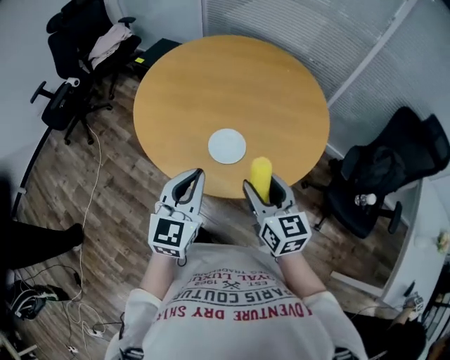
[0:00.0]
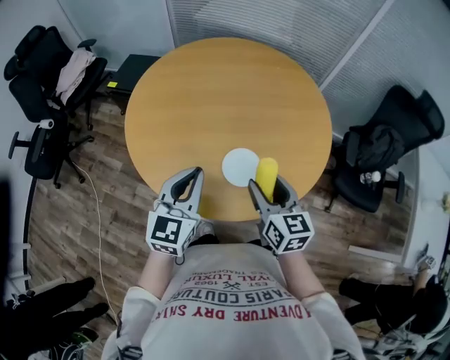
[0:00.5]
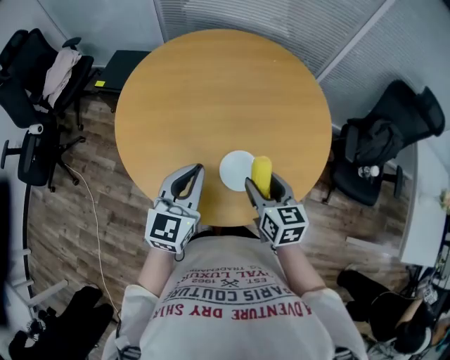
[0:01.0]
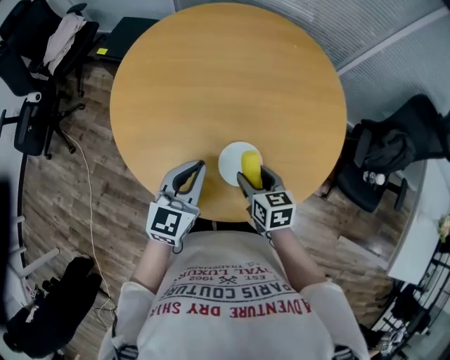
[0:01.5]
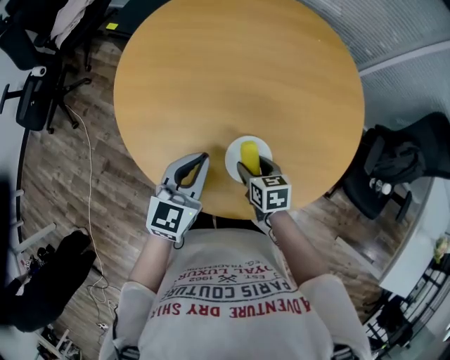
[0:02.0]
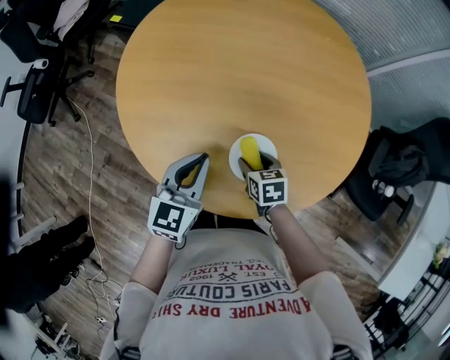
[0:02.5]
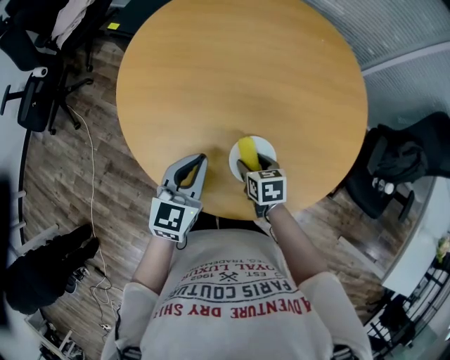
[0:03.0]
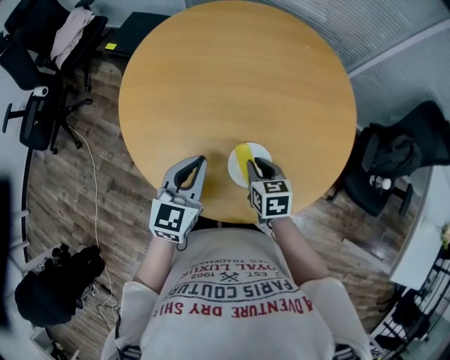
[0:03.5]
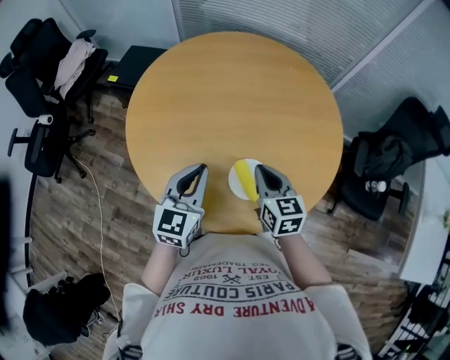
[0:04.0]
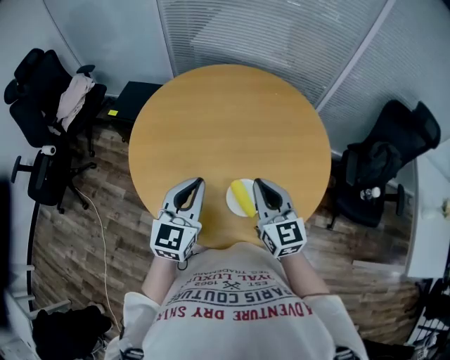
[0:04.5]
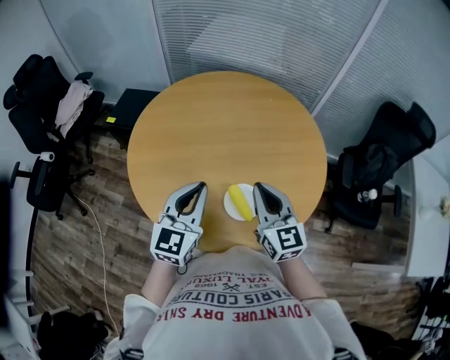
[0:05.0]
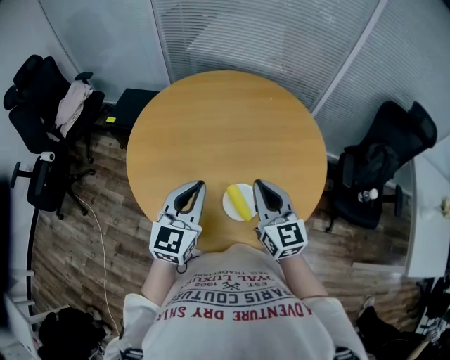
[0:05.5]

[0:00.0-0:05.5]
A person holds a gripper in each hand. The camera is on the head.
0:00.0 to 0:02.0: The left gripper goes roughly 25 cm forward and downward, while the right gripper is displaced downward and forward by about 30 cm, and tilts its fingers about 40 degrees downward.
0:02.0 to 0:03.5: The right gripper shifts some 5 cm upward, and closes up.
0:03.5 to 0:05.5: The left gripper travels upward by some 10 cm; the right gripper shifts about 20 cm upward, and angles its fingers upward, by roughly 40 degrees.

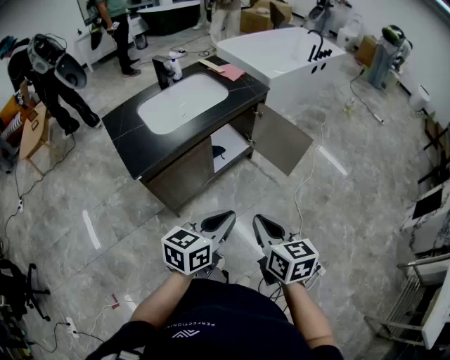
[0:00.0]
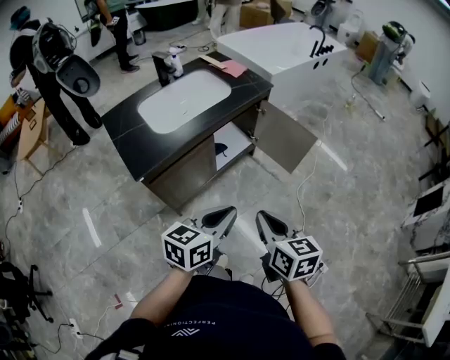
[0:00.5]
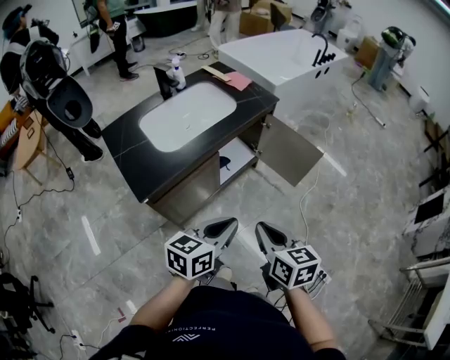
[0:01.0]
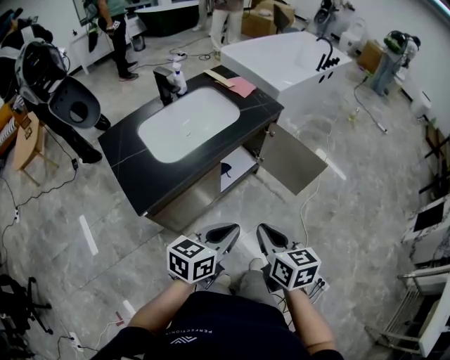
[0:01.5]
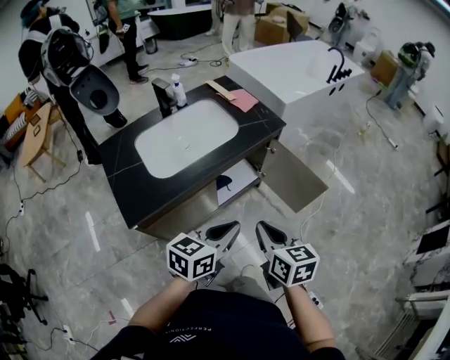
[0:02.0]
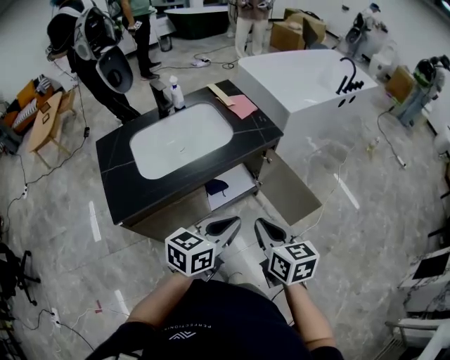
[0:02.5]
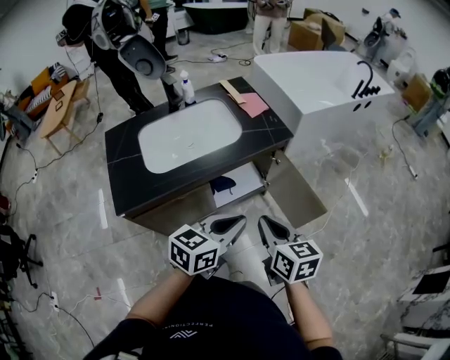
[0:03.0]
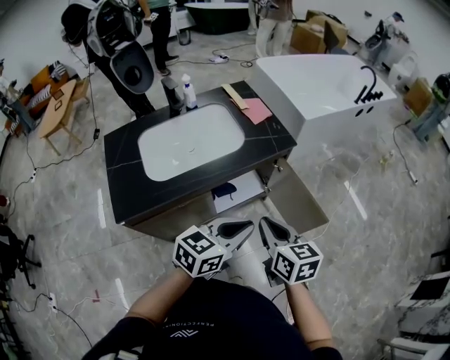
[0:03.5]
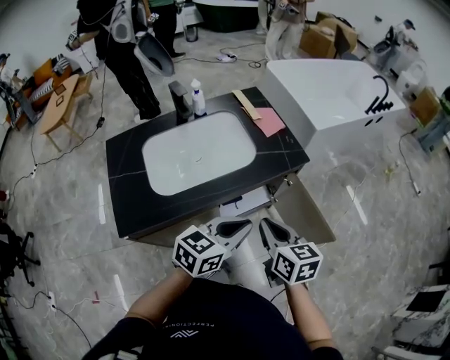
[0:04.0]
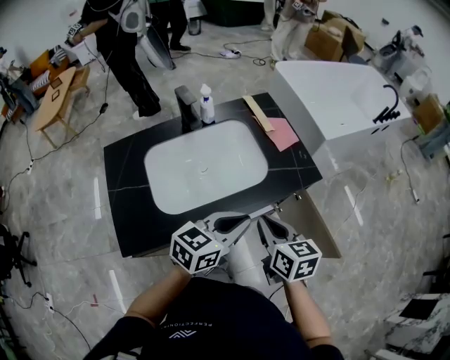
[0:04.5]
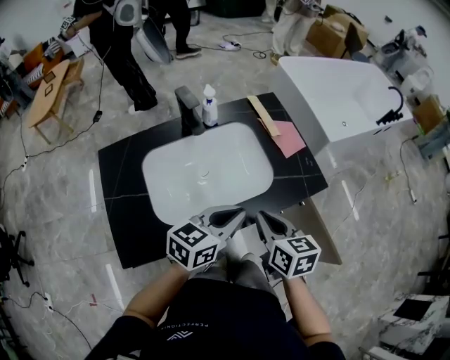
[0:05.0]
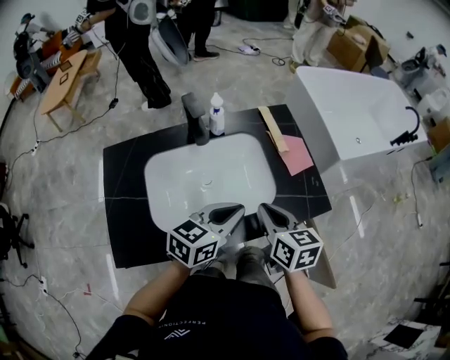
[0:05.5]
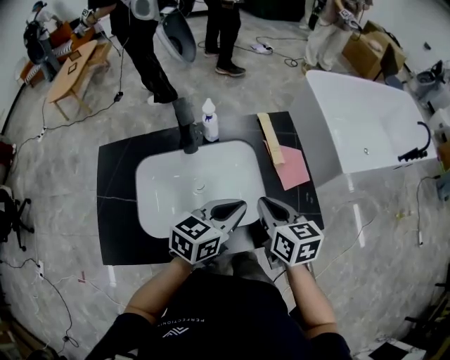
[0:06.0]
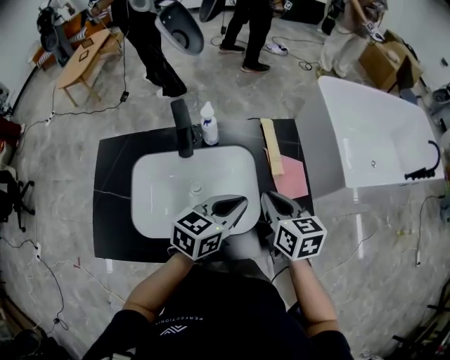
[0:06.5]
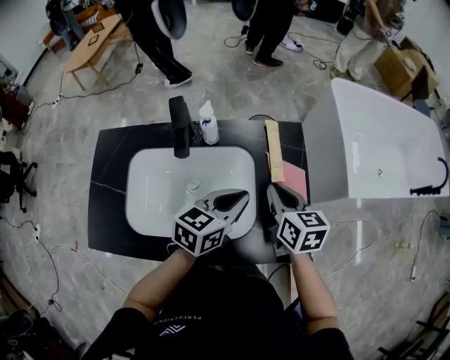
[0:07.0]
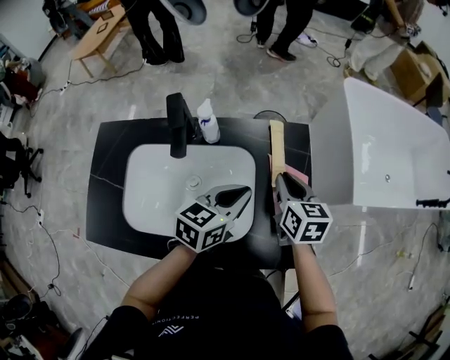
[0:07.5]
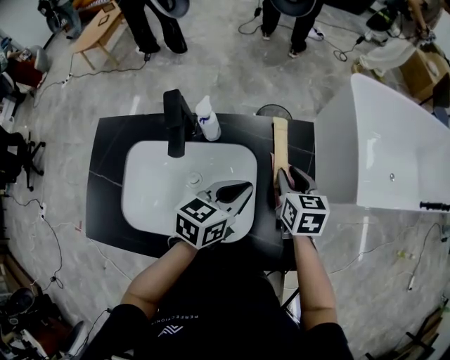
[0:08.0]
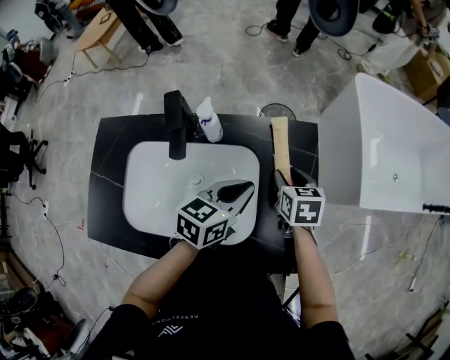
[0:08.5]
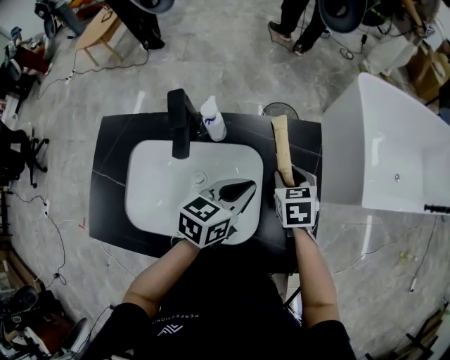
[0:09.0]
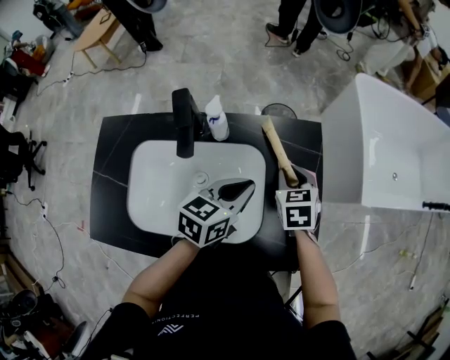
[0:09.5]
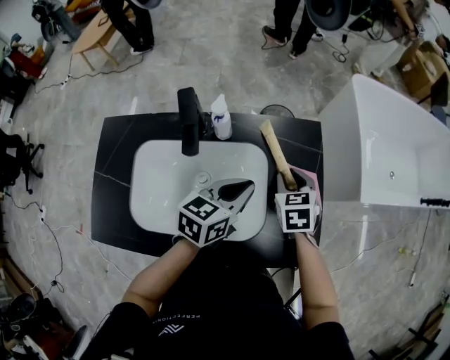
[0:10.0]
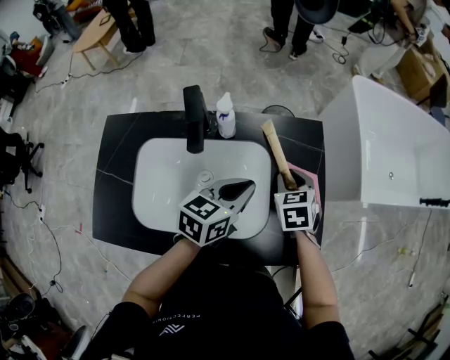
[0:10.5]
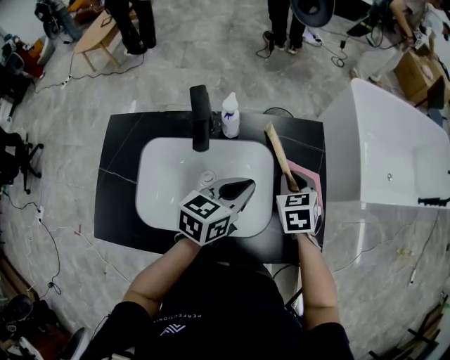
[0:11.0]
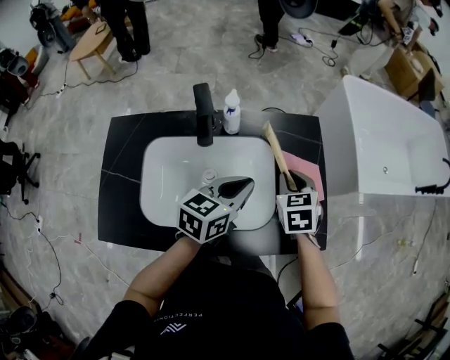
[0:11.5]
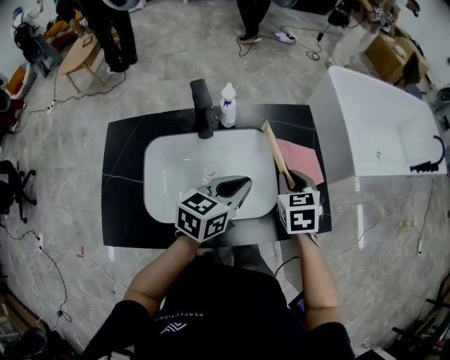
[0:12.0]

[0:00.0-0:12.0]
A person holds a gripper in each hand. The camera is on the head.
0:00.0 to 0:02.0: The two grippers go approximately 20 cm forward.
0:02.0 to 0:04.0: Both grippers travel together forward, some 15 cm.
0:04.0 to 0:06.0: Both grippers move forward, roughly 30 cm.
0:06.0 to 0:08.0: The grippers both shift forward by roughly 15 cm.
0:08.0 to 0:10.0: The right gripper changes its angle by about 20 degrees.
0:10.0 to 0:12.0: The two grippers go roughly 10 cm backward.

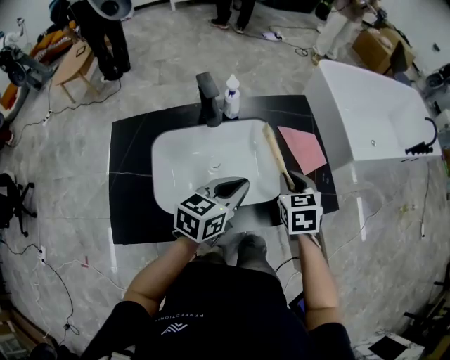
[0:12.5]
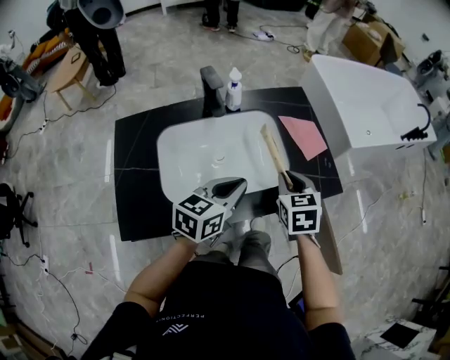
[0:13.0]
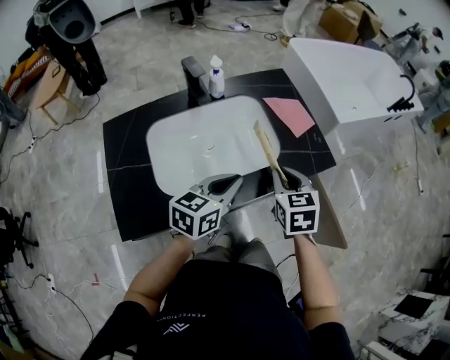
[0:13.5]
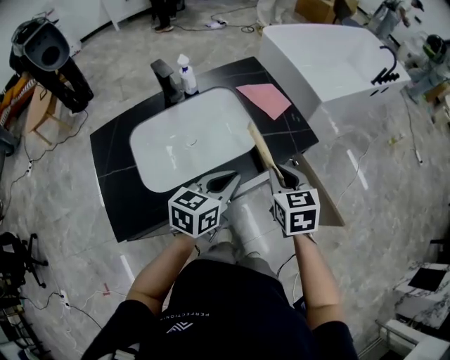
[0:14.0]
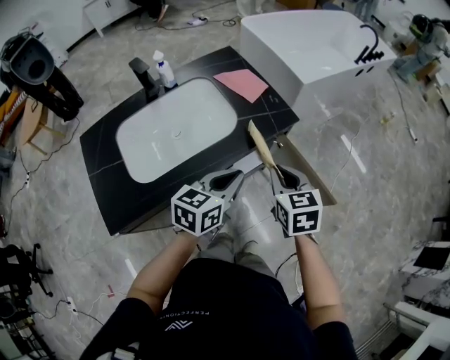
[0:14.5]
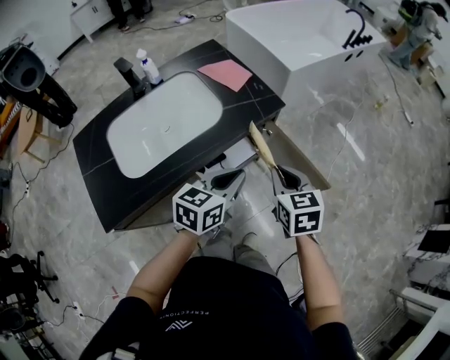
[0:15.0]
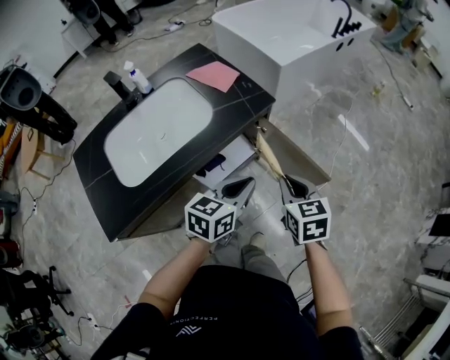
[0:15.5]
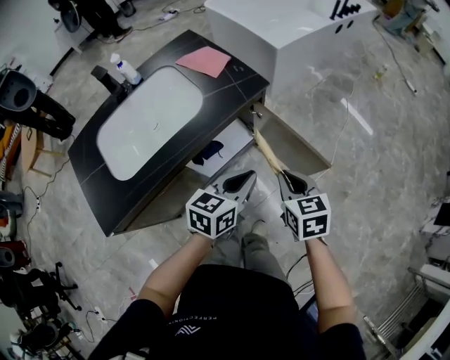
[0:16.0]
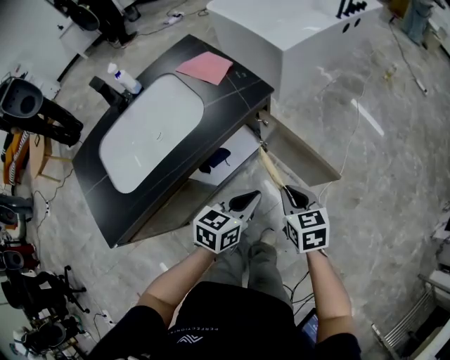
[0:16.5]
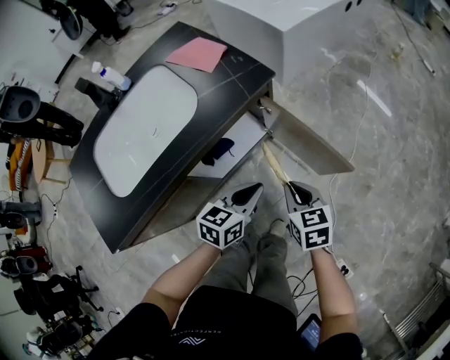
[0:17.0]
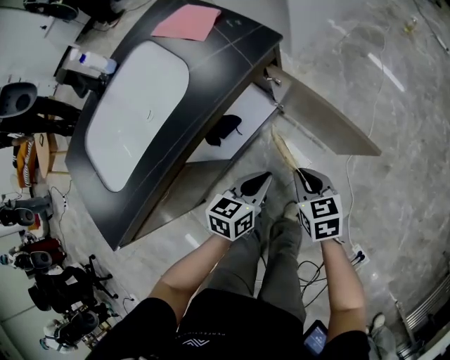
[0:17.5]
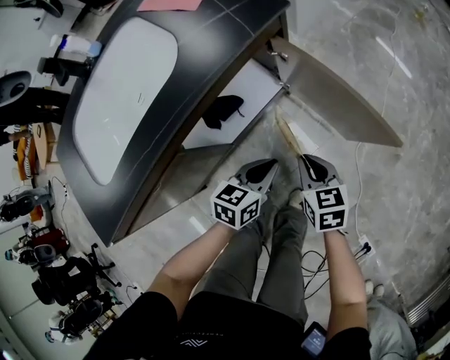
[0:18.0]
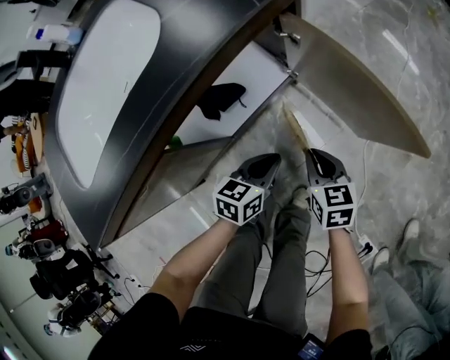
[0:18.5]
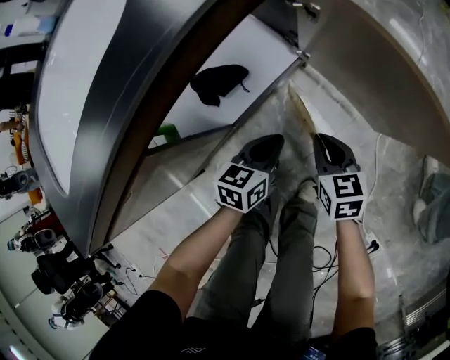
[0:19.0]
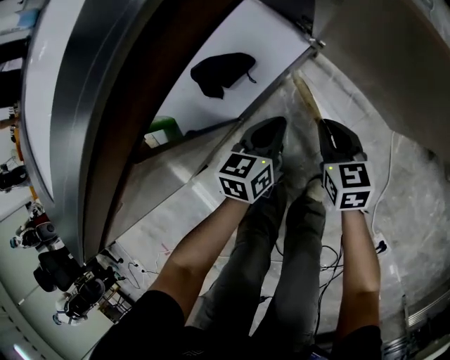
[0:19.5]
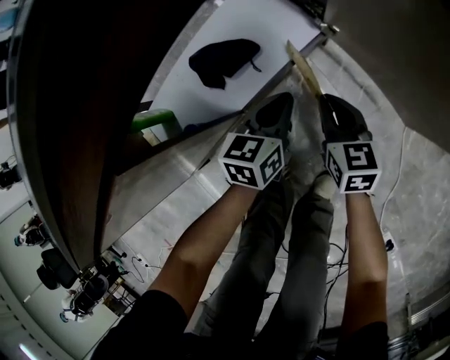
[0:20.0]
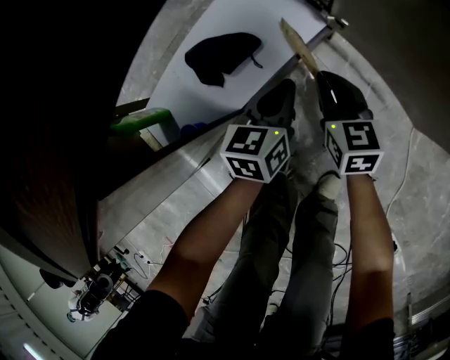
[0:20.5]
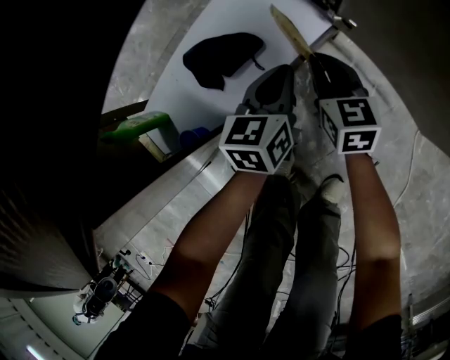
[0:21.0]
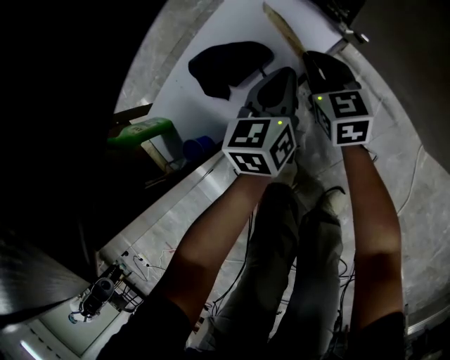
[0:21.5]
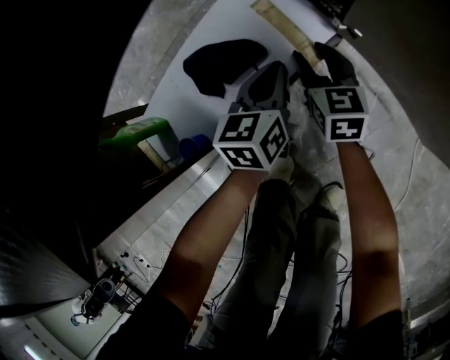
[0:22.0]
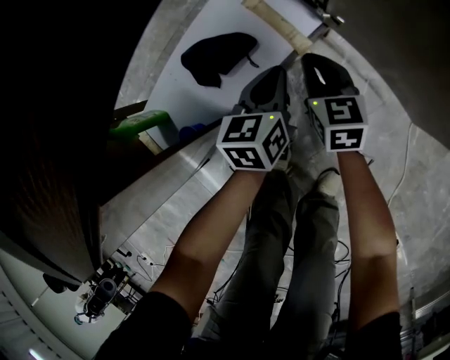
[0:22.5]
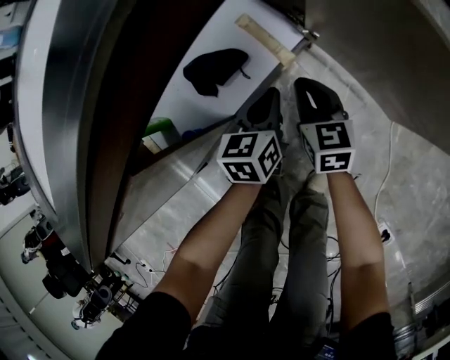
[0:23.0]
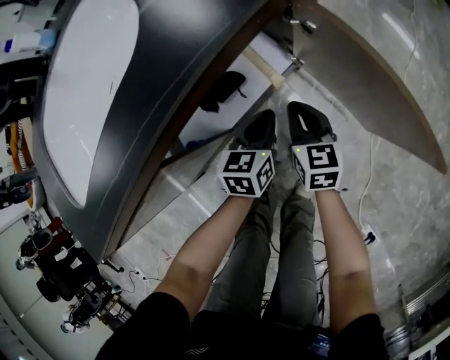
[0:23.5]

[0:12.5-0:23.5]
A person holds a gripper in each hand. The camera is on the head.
0:12.5 to 0:14.5: Both grippers move backward and to the right, some 25 cm. The right gripper swivels about 20 degrees.
0:14.5 to 0:16.0: The right gripper shifts about 15 cm to the right, backward and downward. The left gripper travels to the right and downward by roughly 15 cm.
0:16.0 to 0:18.0: Both grippers travel together downward, about 25 cm.
0:18.0 to 0:20.0: The right gripper goes about 20 cm downward and forward. The left gripper shifts about 20 cm downward, forward and to the left.
0:20.0 to 0:21.5: The right gripper heads forward, downward and to the left, covering approximately 15 cm. Meanwhile the left gripper heads forward, covering approximately 10 cm.
0:21.5 to 0:23.5: Both grippers move upward and backward, about 25 cm. The right gripper opens, then closes again.
